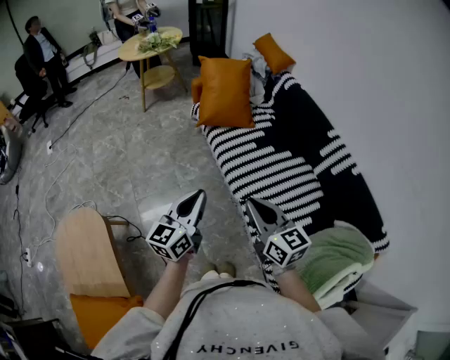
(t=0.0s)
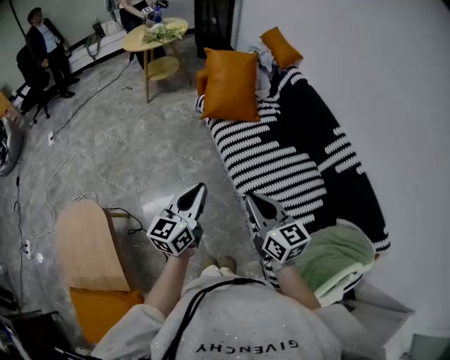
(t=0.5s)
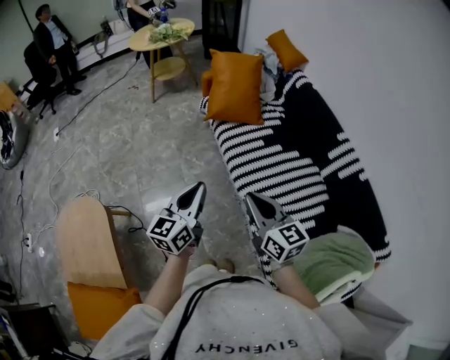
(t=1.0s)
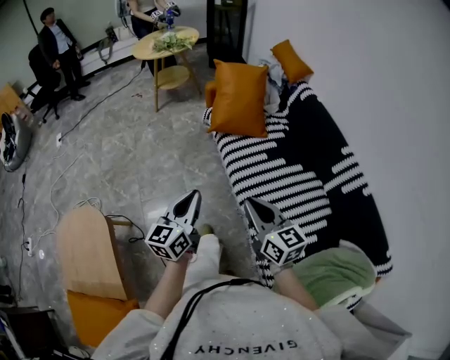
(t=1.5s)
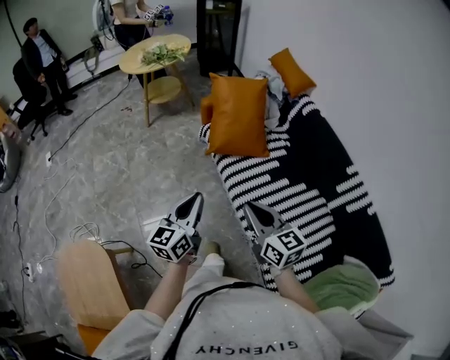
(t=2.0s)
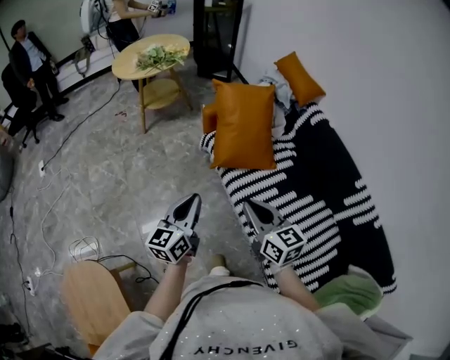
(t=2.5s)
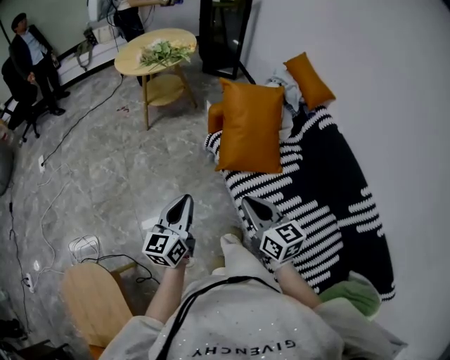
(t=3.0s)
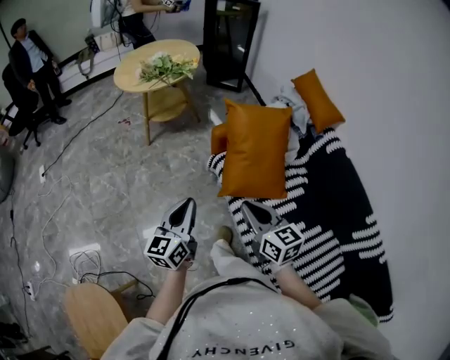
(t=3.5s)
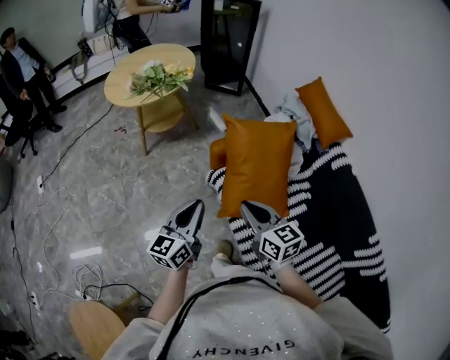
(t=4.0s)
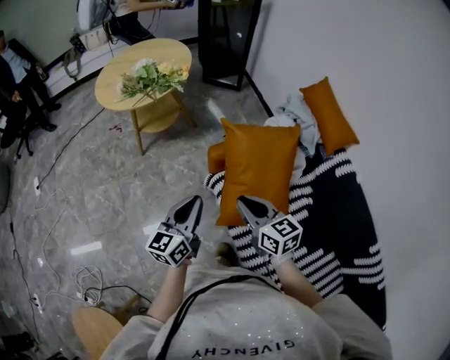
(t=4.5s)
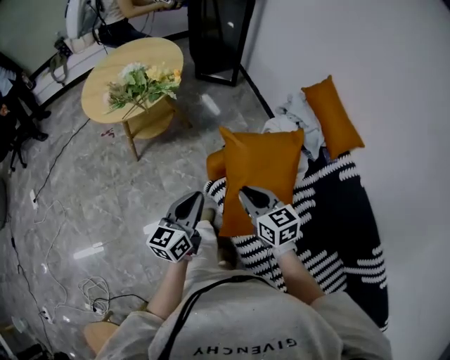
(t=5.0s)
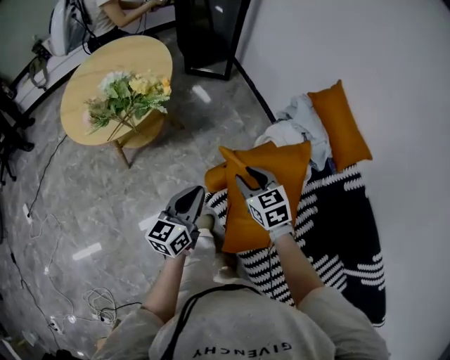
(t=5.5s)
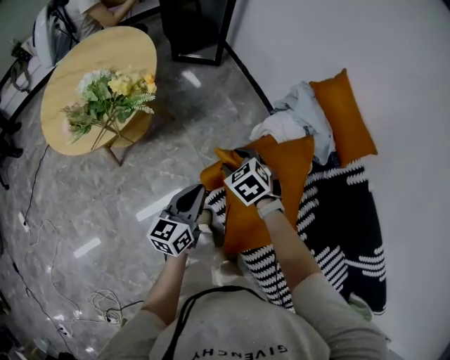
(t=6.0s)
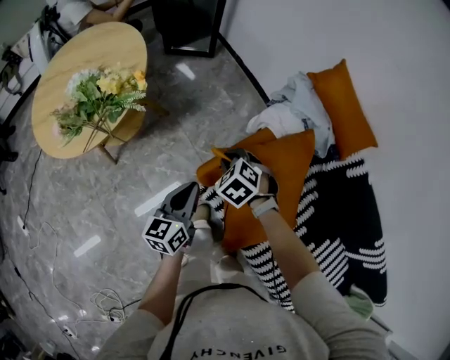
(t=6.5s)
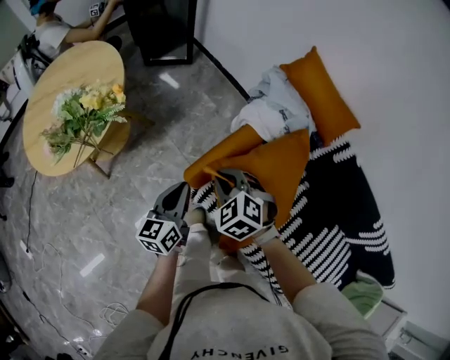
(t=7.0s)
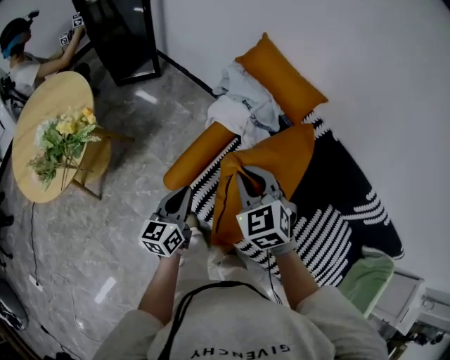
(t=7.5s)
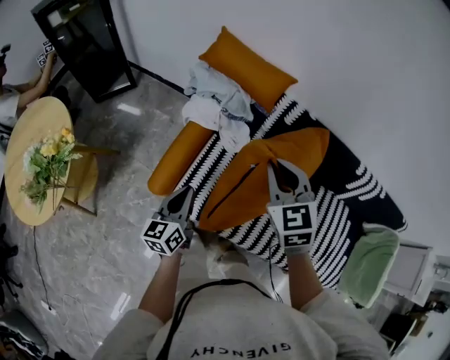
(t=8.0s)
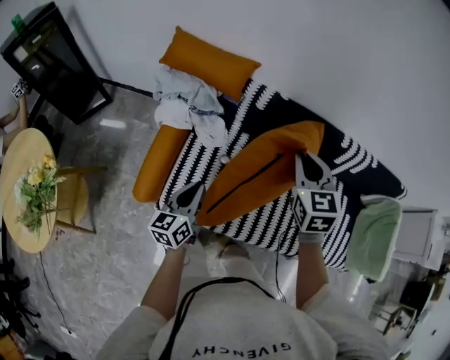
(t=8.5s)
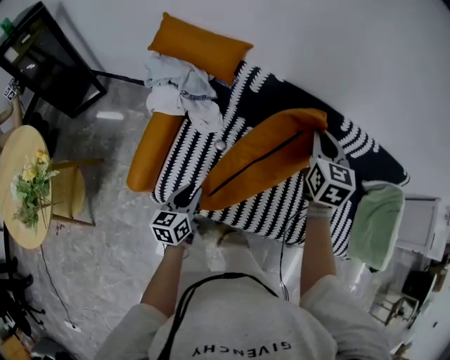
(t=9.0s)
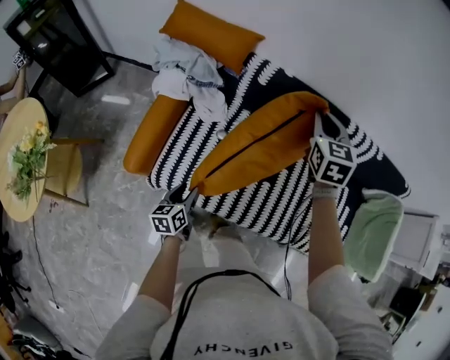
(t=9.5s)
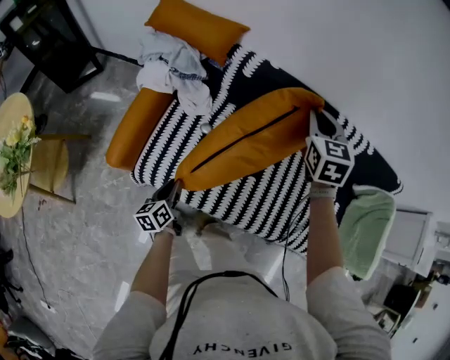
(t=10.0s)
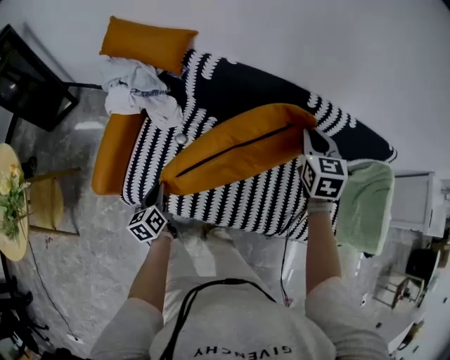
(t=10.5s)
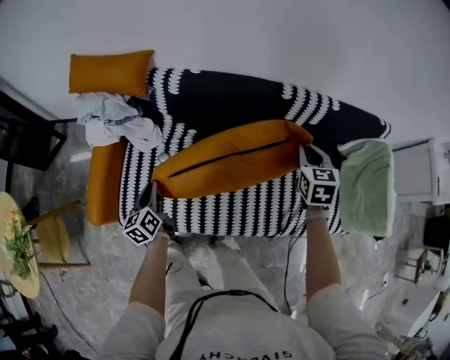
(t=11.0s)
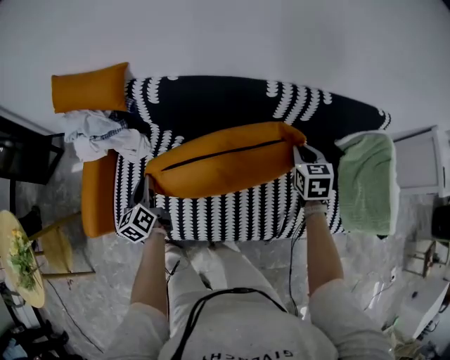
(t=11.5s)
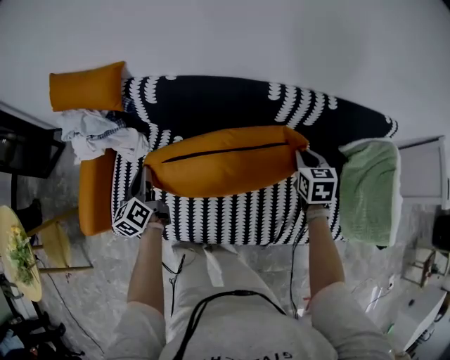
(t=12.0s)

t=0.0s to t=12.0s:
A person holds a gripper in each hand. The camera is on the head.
t=0.0s to t=2.0s: Both grippers move forward, approximately 20 cm.
t=2.0s to t=4.0s: Both grippers travel together forward, about 40 cm.
t=4.0s to t=6.0s: Both grippers move forward and downward, some 40 cm. The right gripper tilts its fingers some 40 degrees downward, and opens up.
t=6.0s to t=8.0s: The left gripper moves approximately 15 cm, and rotates about 20 degrees. The right gripper moves approximately 40 cm, tilts its fingers about 30 degrees upward, and closes its fingers.
t=8.0s to t=10.0s: The right gripper shifts roughly 25 cm to the right, and rotates about 20 degrees, while the left gripper moves downward and to the right, roughly 20 cm, changes its angle by approximately 20 degrees, and opens and closes again.
t=10.0s to t=12.0s: The left gripper heads forward, to the right and upward, covering approximately 25 cm, while the right gripper heads to the right and downward, covering some 35 cm, and turns by some 30 degrees.

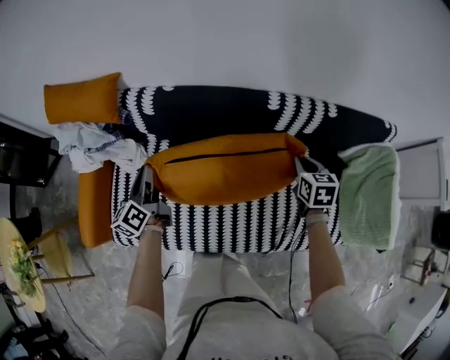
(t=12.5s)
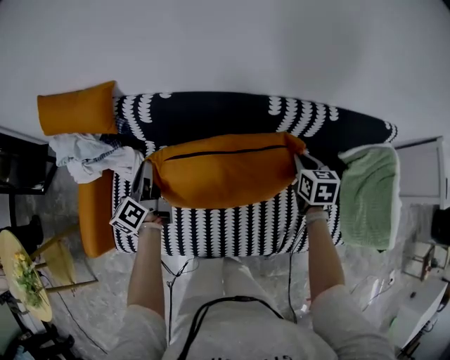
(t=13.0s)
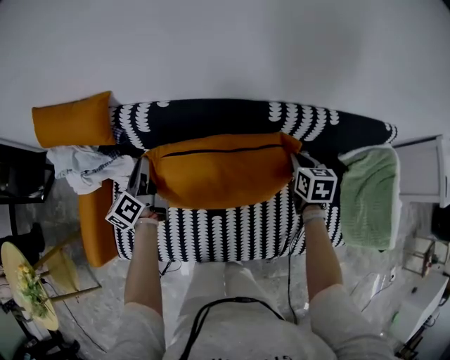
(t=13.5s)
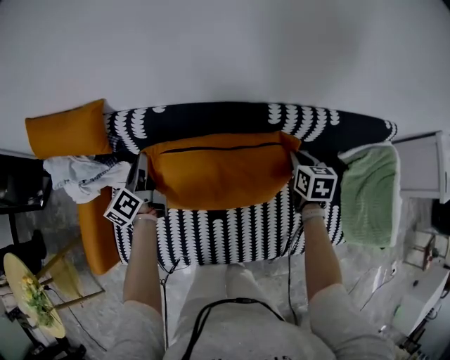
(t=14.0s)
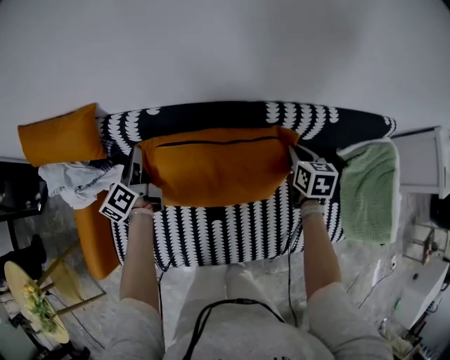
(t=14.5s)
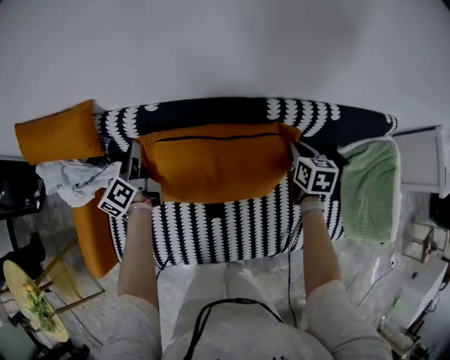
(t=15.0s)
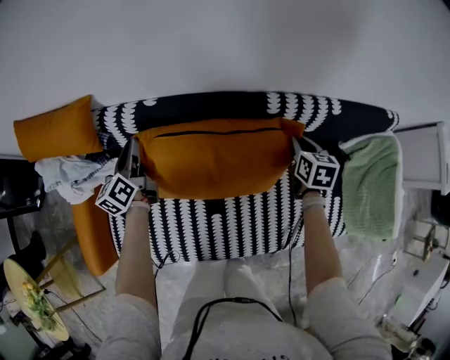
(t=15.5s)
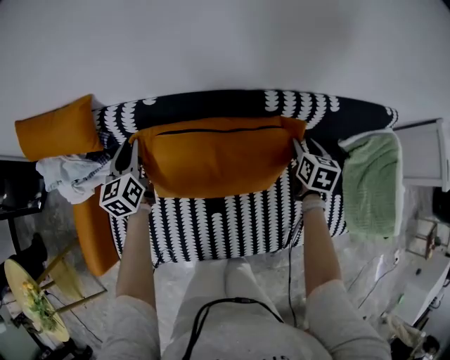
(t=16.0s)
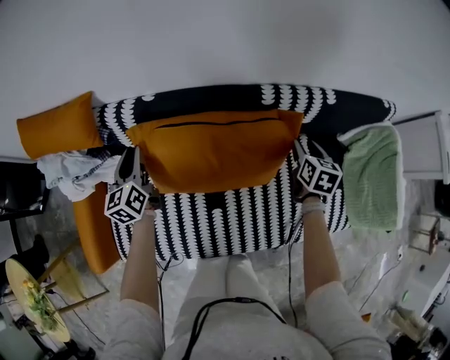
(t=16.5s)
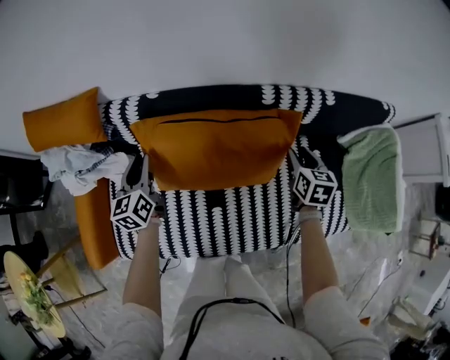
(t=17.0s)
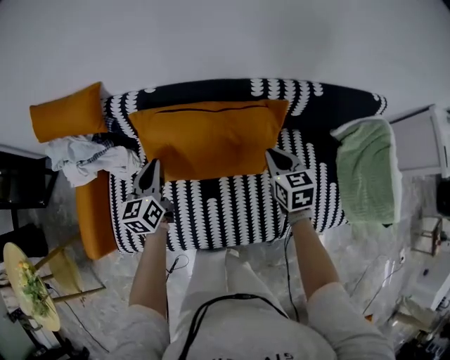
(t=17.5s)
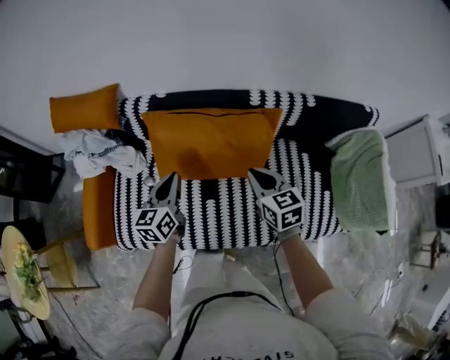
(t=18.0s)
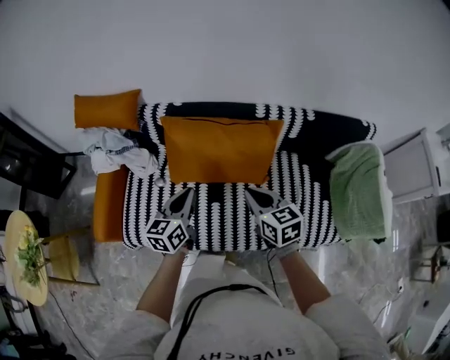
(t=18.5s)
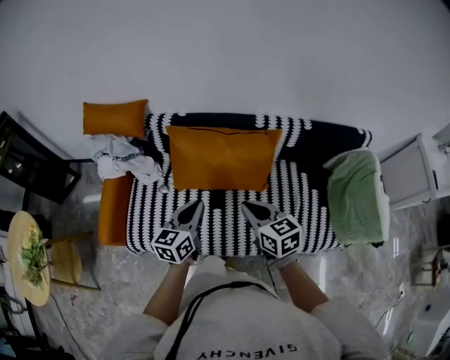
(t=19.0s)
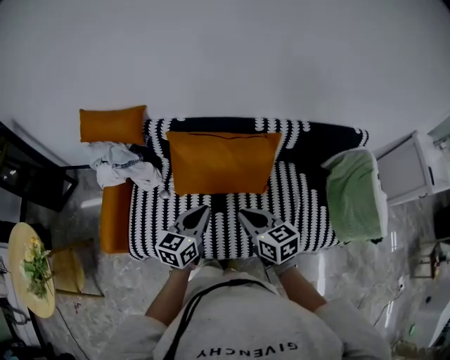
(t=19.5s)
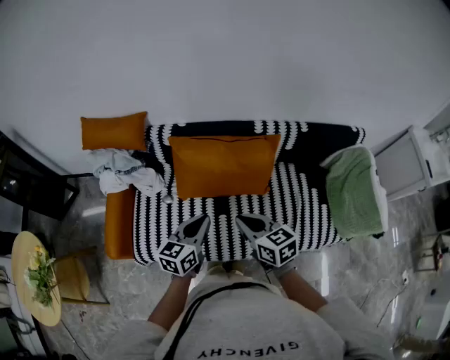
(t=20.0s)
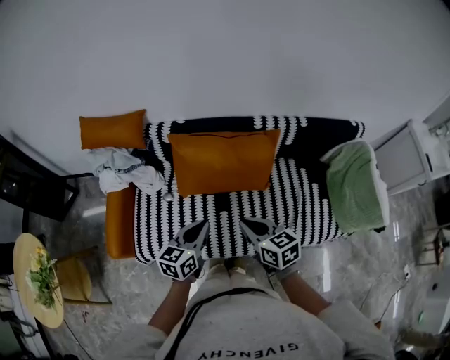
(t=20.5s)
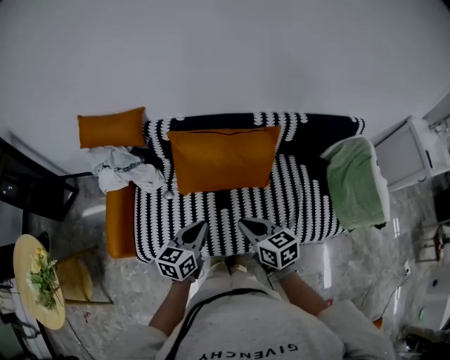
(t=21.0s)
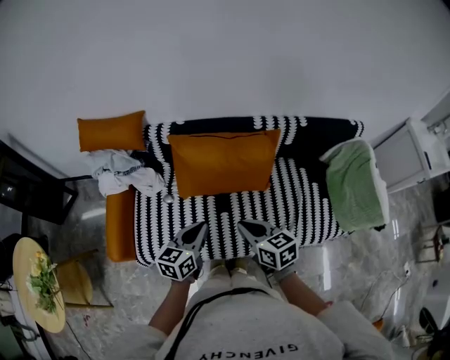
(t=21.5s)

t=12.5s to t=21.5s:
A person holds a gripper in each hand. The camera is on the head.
t=12.5s to t=14.5s: The left gripper heads forward, covering roughly 15 cm; the right gripper heads forward, covering some 10 cm.
t=14.5s to t=17.0s: Both grippers move backward, approximately 10 cm. The left gripper rotates roughly 30 degrees; the right gripper opens up.
t=17.0s to t=19.5s: The right gripper shifts some 35 cm backward, to the left and upward, swivels roughly 40 degrees, and closes up, while the left gripper shifts roughly 30 cm backward, to the right and upward, and changes its angle by roughly 30 degrees.
t=19.5s to t=21.5s: The left gripper shifts by about 5 cm. The right gripper moves about 5 cm.

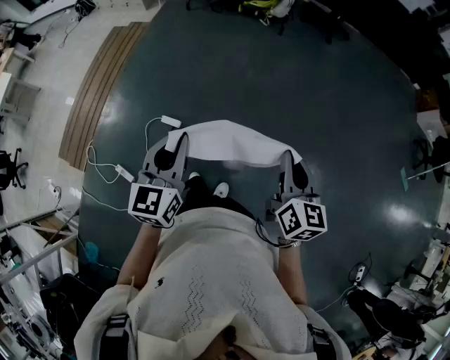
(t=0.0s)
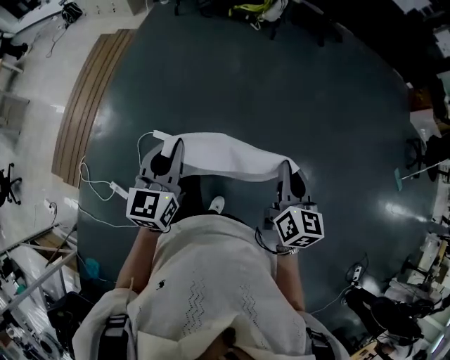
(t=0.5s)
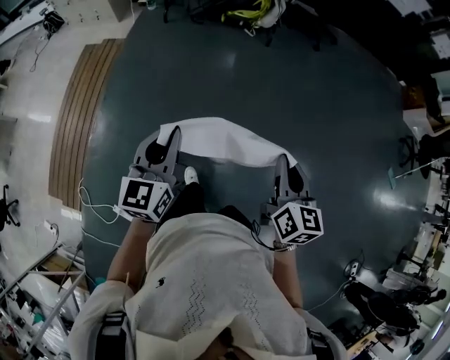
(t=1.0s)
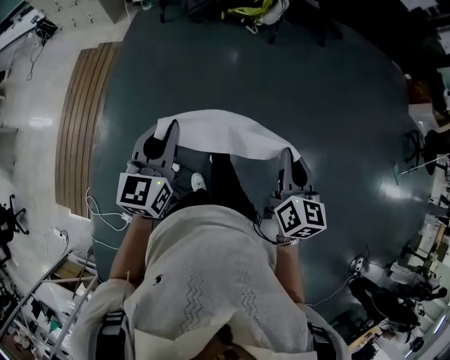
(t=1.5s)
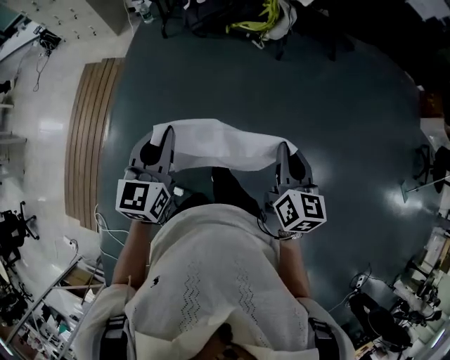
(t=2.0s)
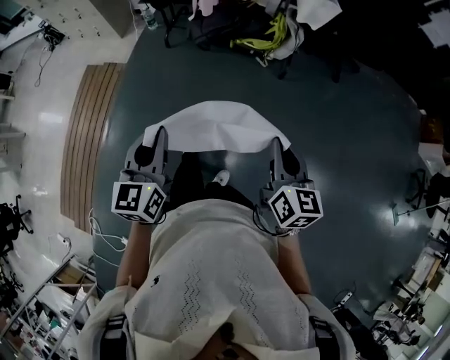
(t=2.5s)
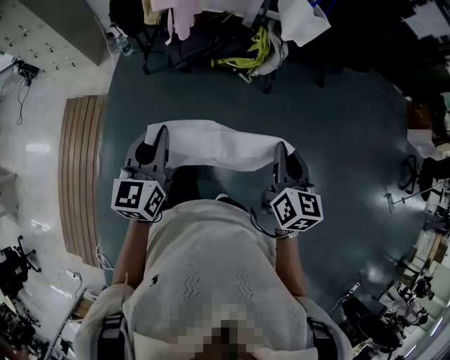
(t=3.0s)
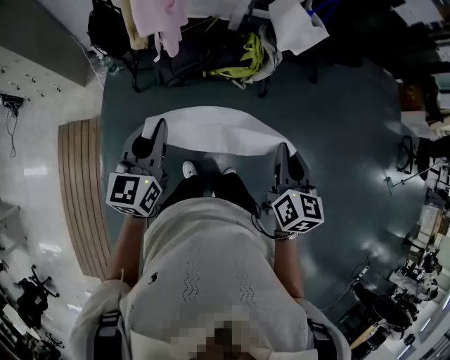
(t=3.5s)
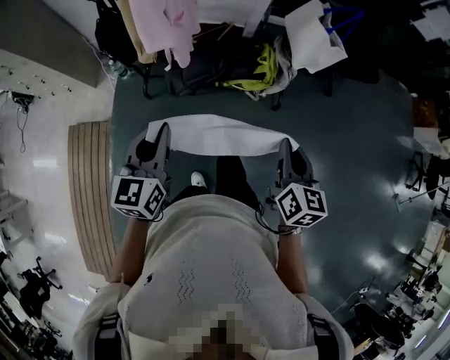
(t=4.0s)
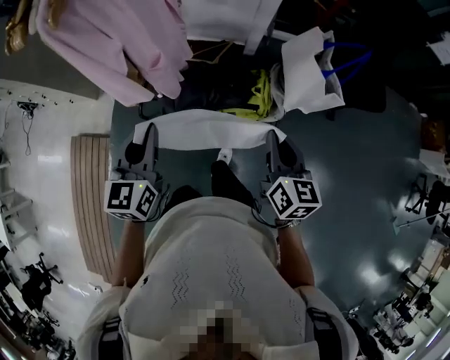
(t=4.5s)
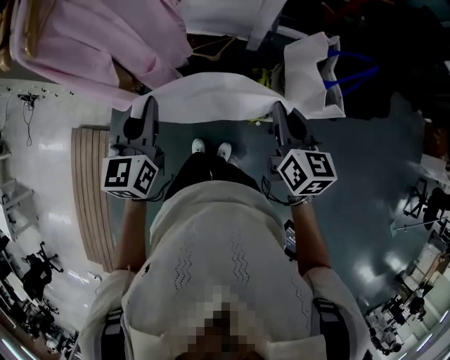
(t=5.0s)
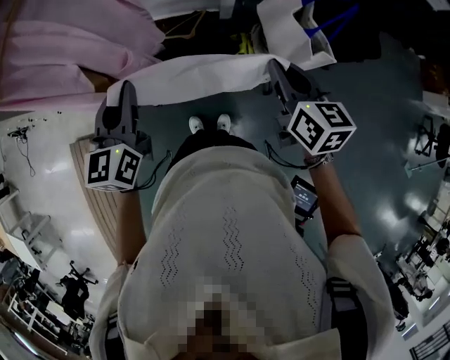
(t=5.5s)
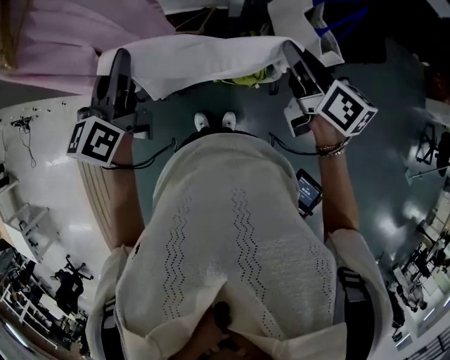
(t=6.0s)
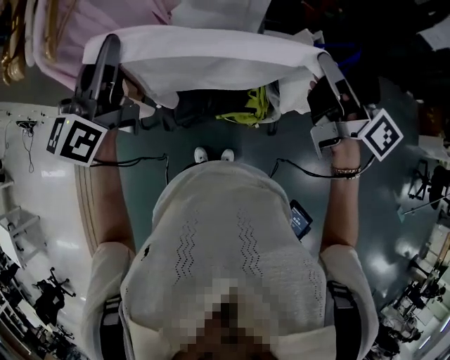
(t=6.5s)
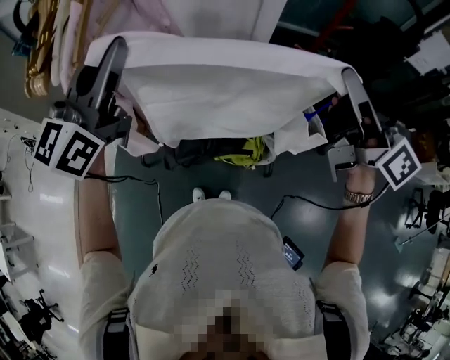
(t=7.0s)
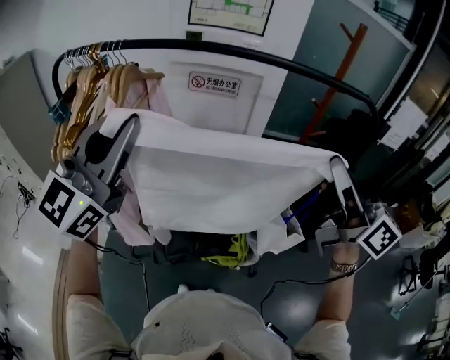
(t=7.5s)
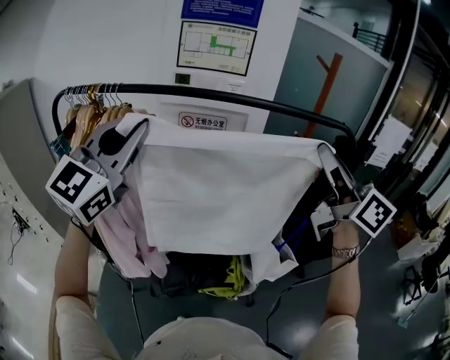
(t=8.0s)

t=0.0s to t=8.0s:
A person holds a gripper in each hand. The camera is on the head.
t=0.0s to t=2.0s: The pair of grippers is taken forward, some 70 cm.
t=2.0s to t=4.0s: Both grippers are carried forward, approximately 60 cm.
t=4.0s to t=6.0s: The grippers both shift forward by some 40 cm. The right gripper swivels roughly 20 degrees, while the left gripper rotates about 20 degrees.
t=6.0s to t=8.0s: Both grippers move upward, about 40 cm. The left gripper rotates around the line of its fingers by some 50 degrees, clockwise from behind. Meanwhile the right gripper angles its fingers upward, by roughly 40 degrees.
